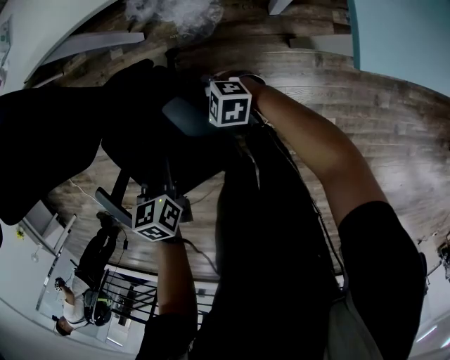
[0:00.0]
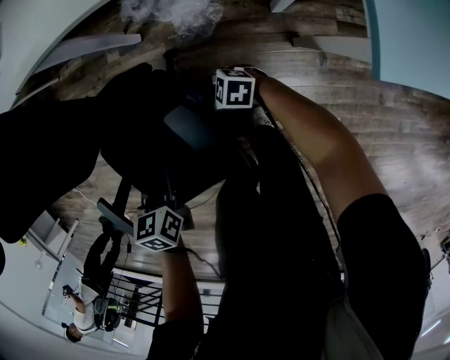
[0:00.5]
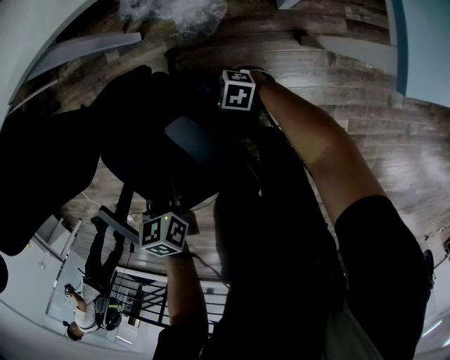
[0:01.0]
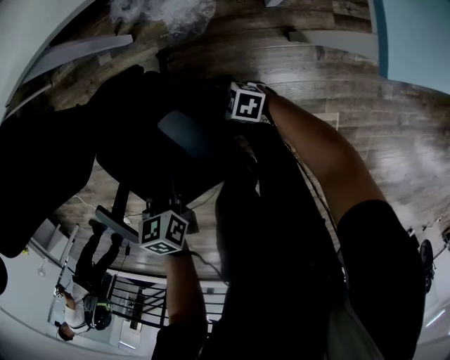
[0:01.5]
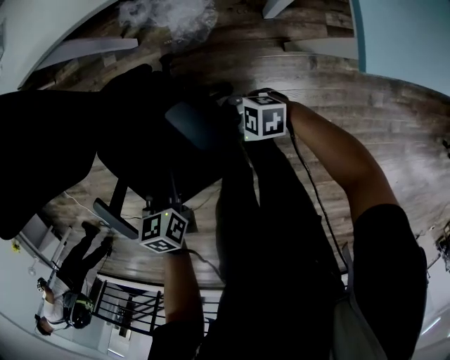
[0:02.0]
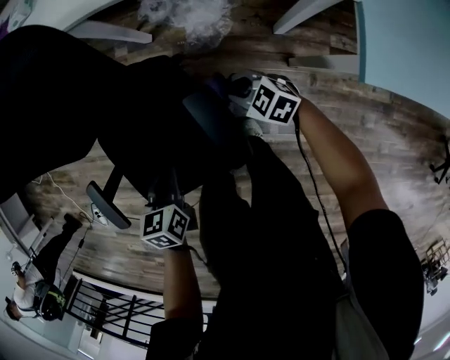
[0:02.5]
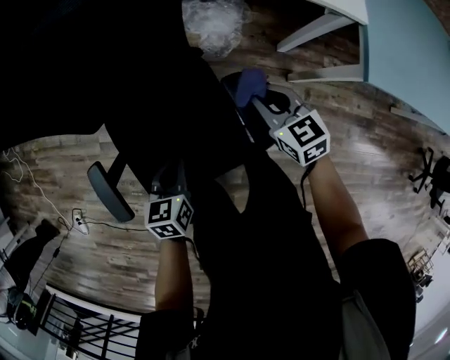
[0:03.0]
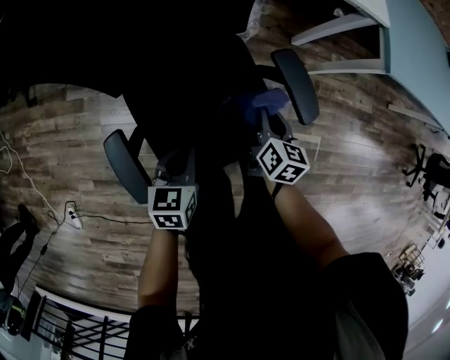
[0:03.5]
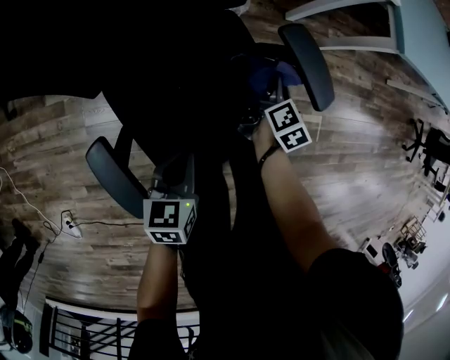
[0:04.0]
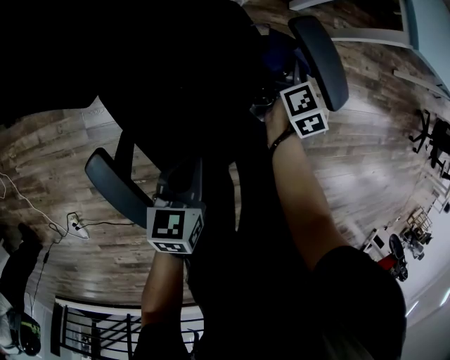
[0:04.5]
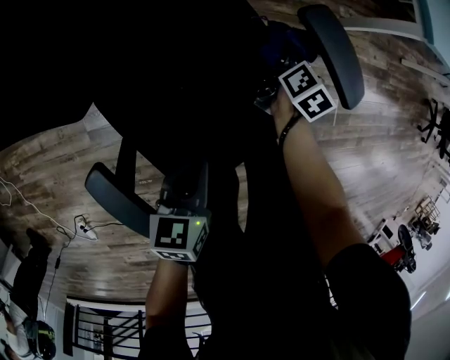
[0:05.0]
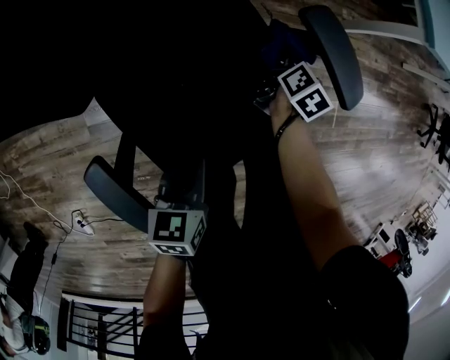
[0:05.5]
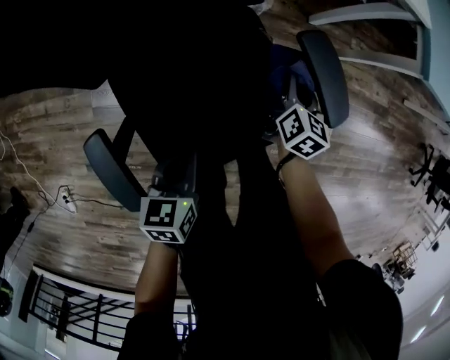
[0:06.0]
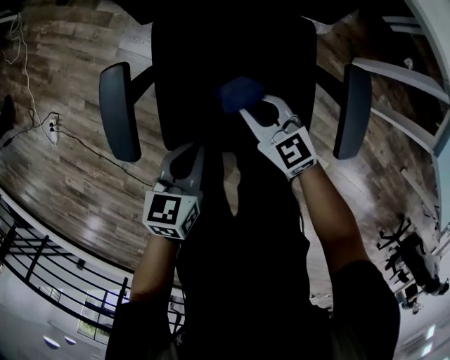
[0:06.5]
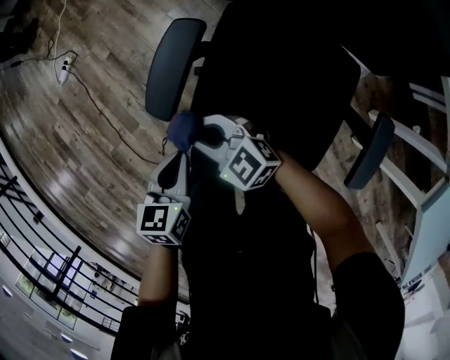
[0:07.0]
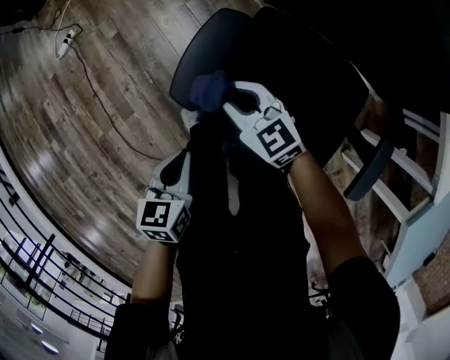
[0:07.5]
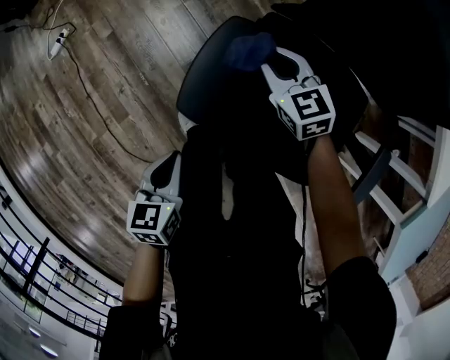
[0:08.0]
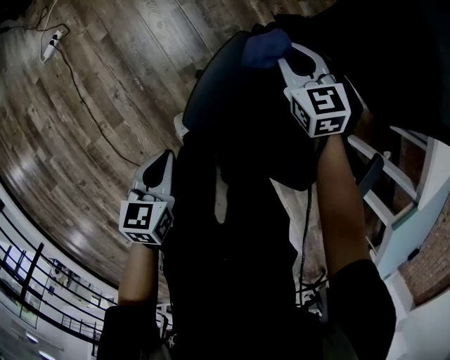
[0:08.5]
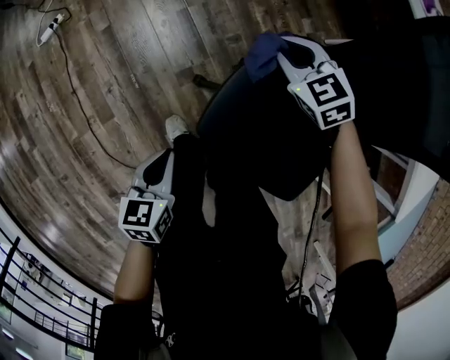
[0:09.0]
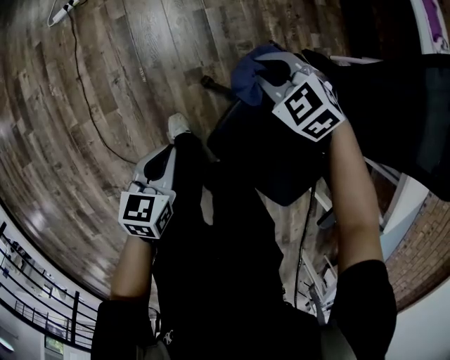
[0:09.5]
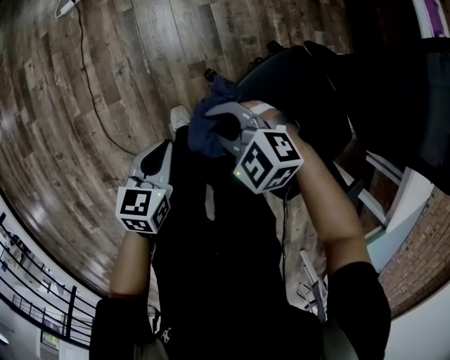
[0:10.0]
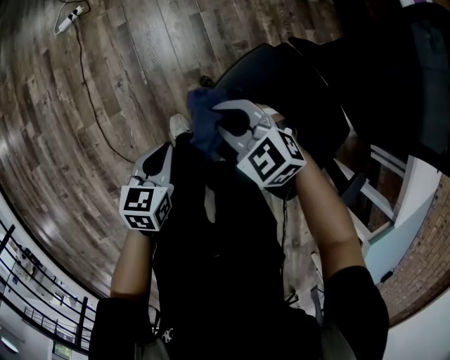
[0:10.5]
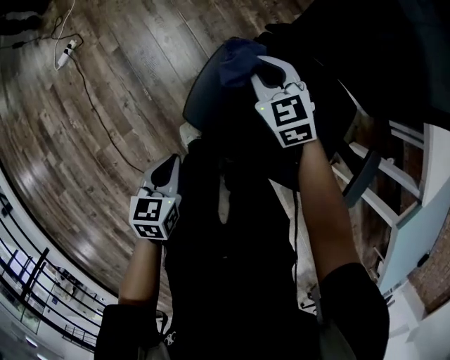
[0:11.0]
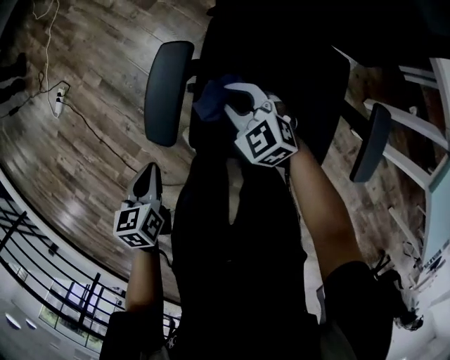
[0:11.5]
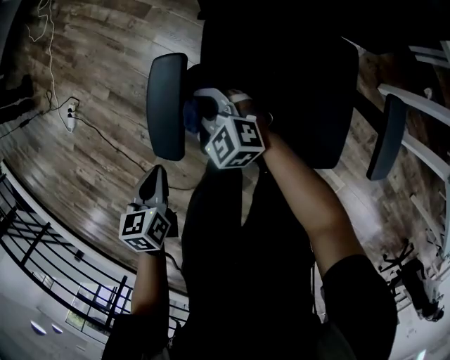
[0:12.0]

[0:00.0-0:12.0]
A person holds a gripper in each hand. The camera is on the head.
0:00.0 to 0:02.0: The right gripper is displaced backward by approximately 10 cm, and reaches roughly 15 cm downward, then returns.
0:02.0 to 0:04.0: The left gripper changes place by about 20 cm, and rotates roughly 20 degrees. The right gripper travels upward and back again, approximately 15 cm each way, and rotates some 130 degrees.
0:04.0 to 0:06.0: The right gripper swivels some 30 degrees.
0:06.0 to 0:08.0: The right gripper shifts by approximately 50 cm, and rotates about 100 degrees, while the left gripper shifts by approximately 25 cm, and swivels about 50 degrees.
0:08.0 to 0:10.0: The right gripper ends up approximately 25 cm from where it was, and changes its angle by about 60 degrees. Meanwhile the left gripper ends up some 5 cm from where it was.
0:10.0 to 0:12.0: The right gripper ends up about 15 cm from where it was, and changes its angle by approximately 50 degrees. Meanwhile the left gripper shifts by some 10 cm, and turns by some 20 degrees.

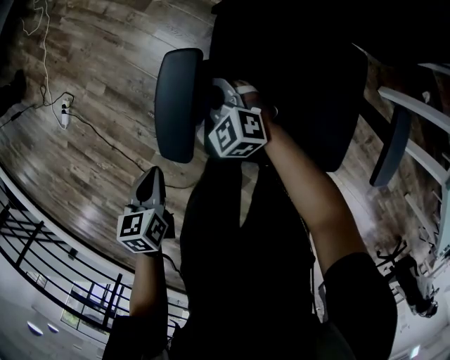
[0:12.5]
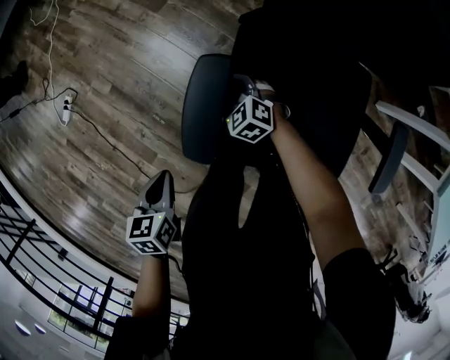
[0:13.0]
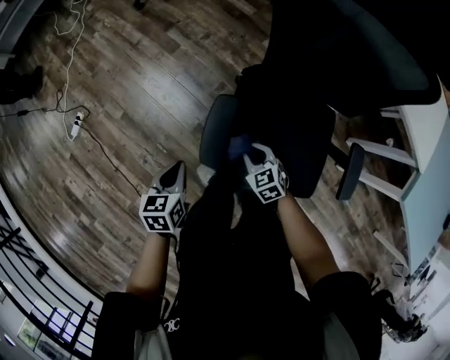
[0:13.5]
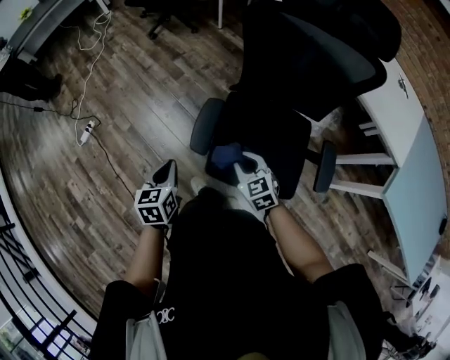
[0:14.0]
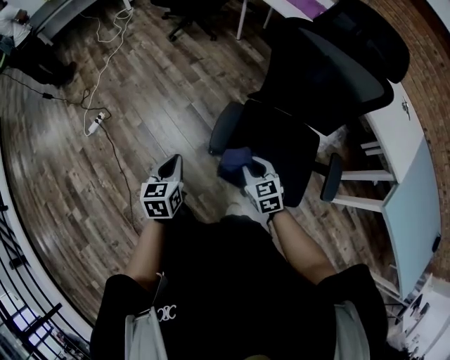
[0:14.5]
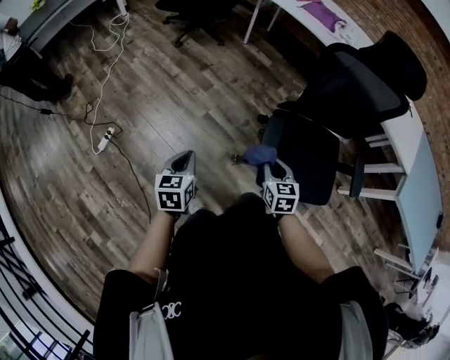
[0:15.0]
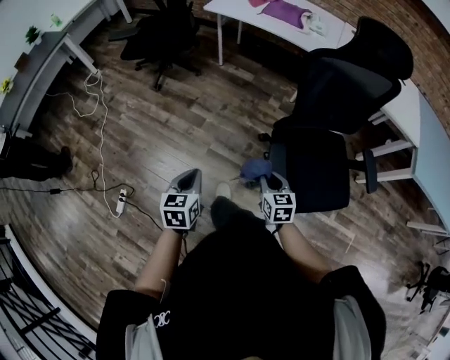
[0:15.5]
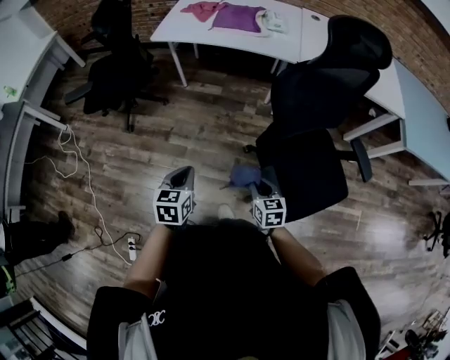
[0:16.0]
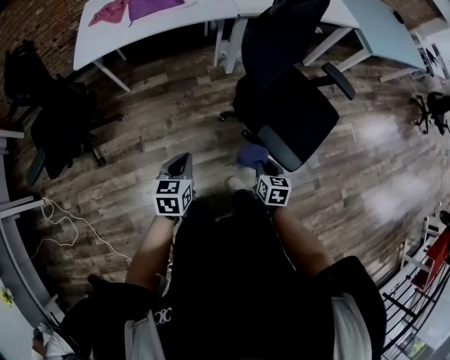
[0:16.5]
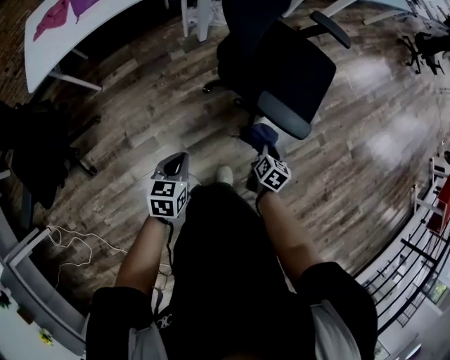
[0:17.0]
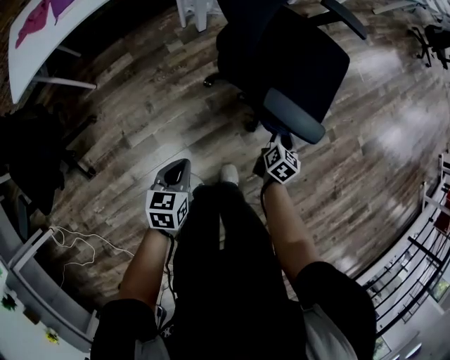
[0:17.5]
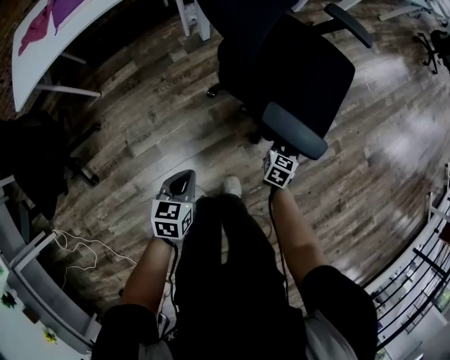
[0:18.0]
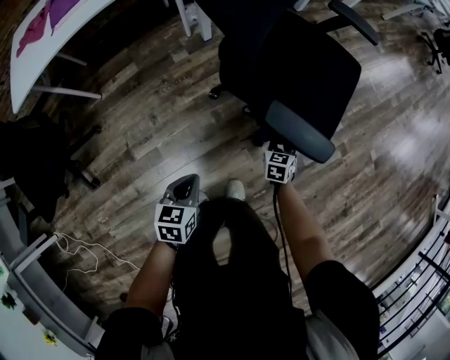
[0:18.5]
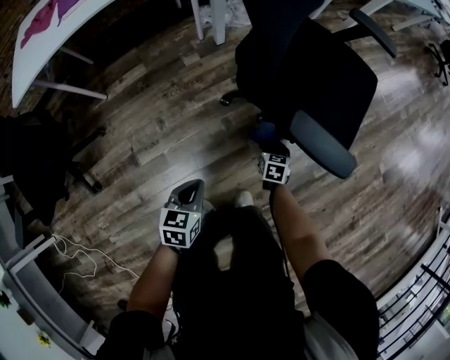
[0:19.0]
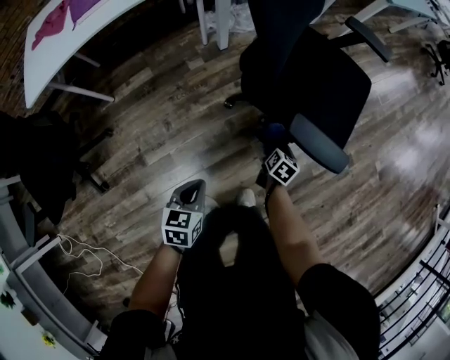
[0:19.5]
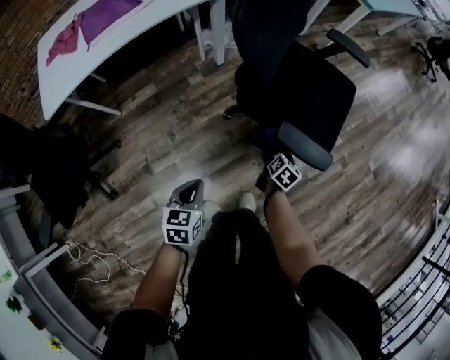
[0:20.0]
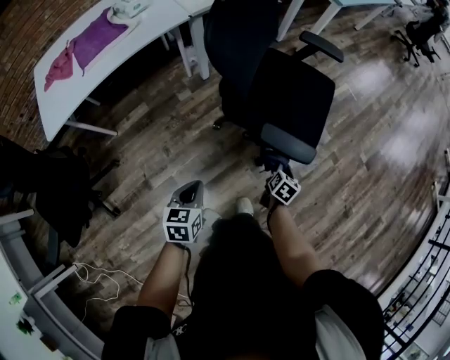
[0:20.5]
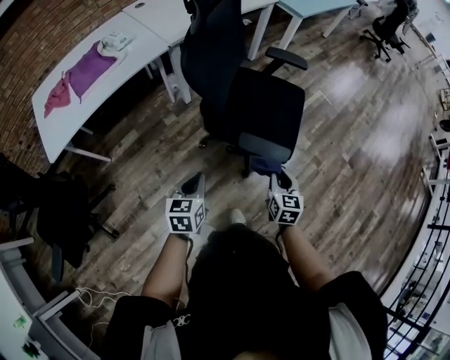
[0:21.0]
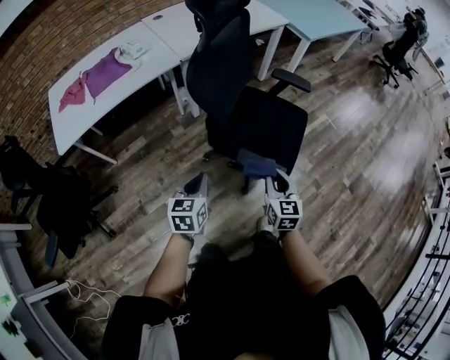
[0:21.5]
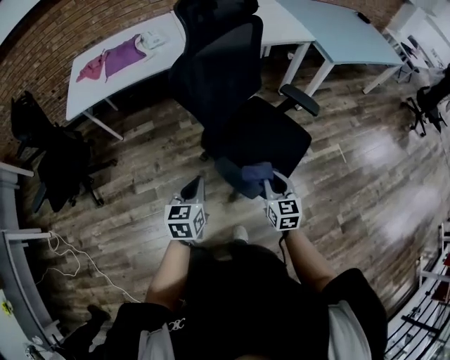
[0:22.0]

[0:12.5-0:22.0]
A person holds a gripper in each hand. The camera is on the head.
0:12.5 to 0:14.5: The left gripper is displaced upward by roughly 20 cm, and swivels roughly 20 degrees; the right gripper moves upward and backward, some 25 cm, and turns by approximately 30 degrees.
0:14.5 to 0:16.5: The right gripper moves some 25 cm, and swivels roughly 90 degrees. The left gripper ends up about 40 cm from where it was, and swivels approximately 70 degrees.
0:16.5 to 0:18.0: Both grippers travel together downward, roughly 15 cm. The left gripper turns by roughly 20 degrees. Meanwhile the right gripper turns by some 30 degrees.
0:18.0 to 0:20.0: The left gripper shifts some 5 cm upward and to the left. The right gripper moves to the left, approximately 5 cm, moves approximately 15 cm downward and comes back, and swivels roughly 30 degrees.
0:20.0 to 0:22.0: The left gripper ends up roughly 30 cm from where it was, and rotates some 30 degrees; the right gripper moves upward, approximately 25 cm, and changes its angle by approximately 60 degrees.

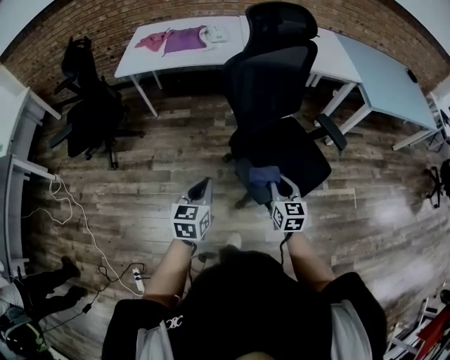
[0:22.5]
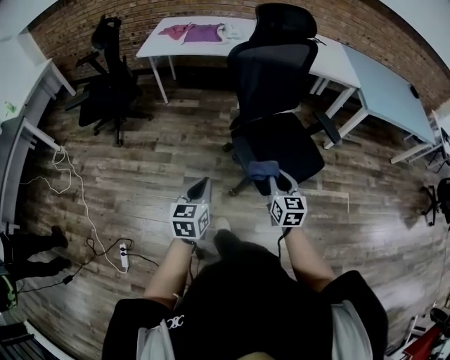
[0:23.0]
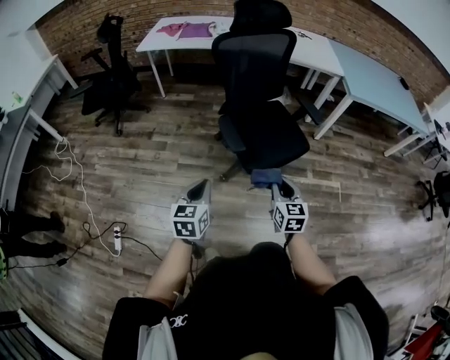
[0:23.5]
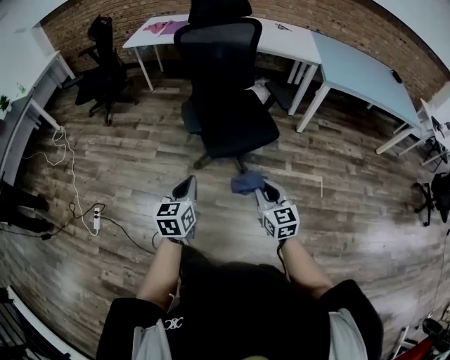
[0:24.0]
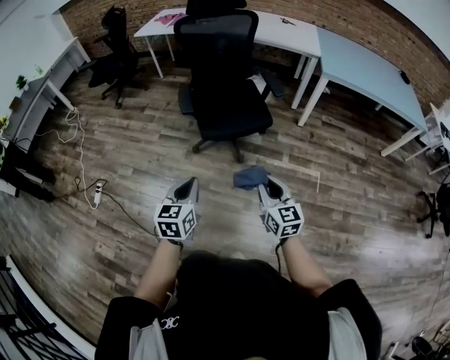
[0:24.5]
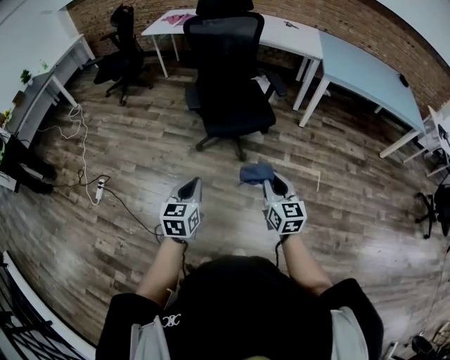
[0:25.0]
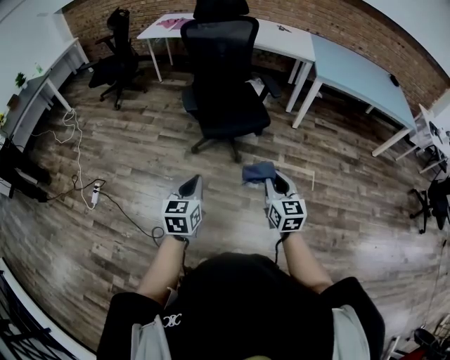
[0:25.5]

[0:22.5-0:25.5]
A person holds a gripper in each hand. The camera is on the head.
0:22.5 to 0:24.0: The pair of grippers is taken backward and to the right, approximately 50 cm. The right gripper rotates approximately 20 degrees.
0:24.0 to 0:25.5: The left gripper is displaced backward and to the right by approximately 20 cm, while the right gripper heads backward, to the right and upward, covering roughly 15 cm.

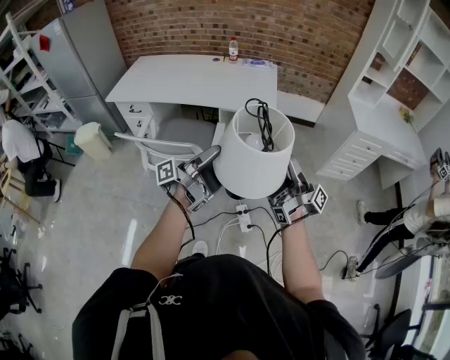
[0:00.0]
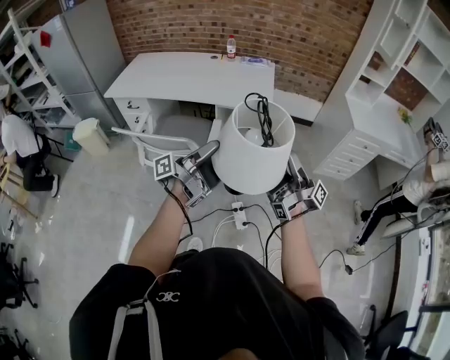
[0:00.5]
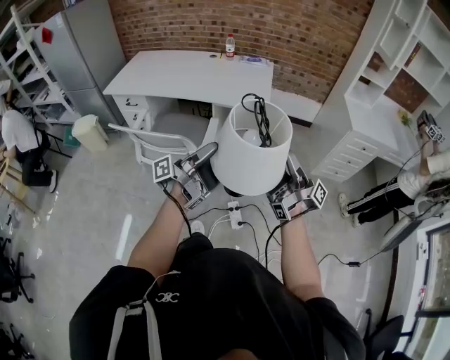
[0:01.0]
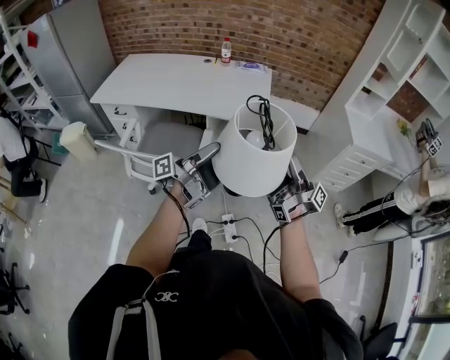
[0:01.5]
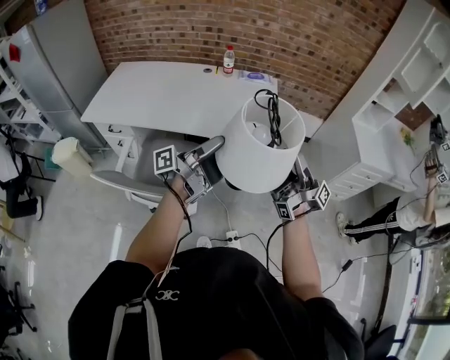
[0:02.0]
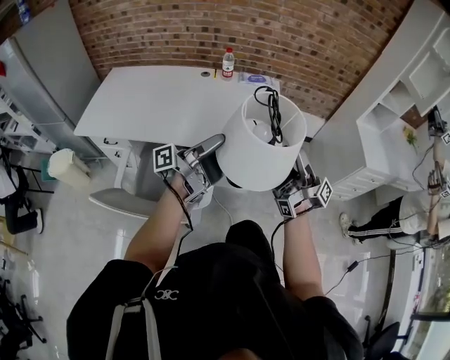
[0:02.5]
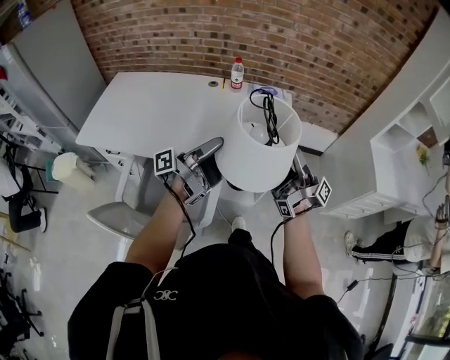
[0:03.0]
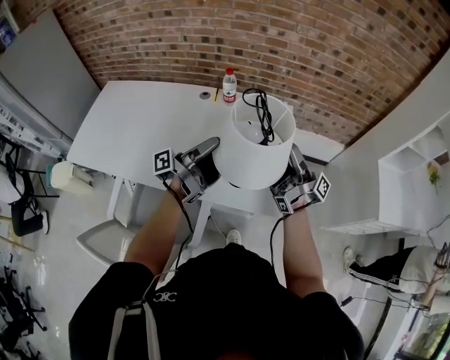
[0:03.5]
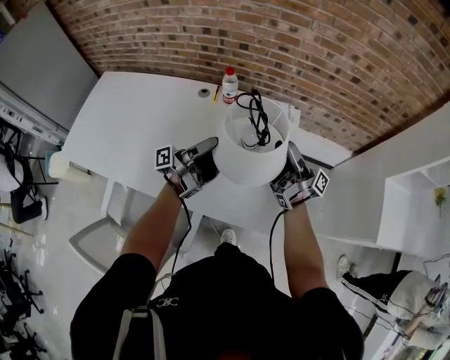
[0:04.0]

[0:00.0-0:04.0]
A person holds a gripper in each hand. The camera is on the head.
0:00.0 to 0:02.0: Both grippers travel together forward, some 25 cm.
0:02.0 to 0:04.0: The two grippers travel together, forward, approximately 50 cm.
